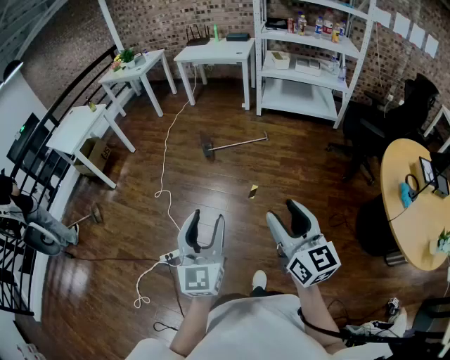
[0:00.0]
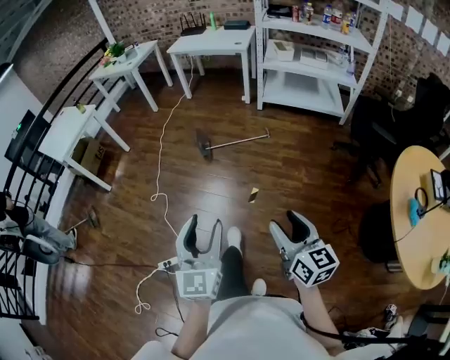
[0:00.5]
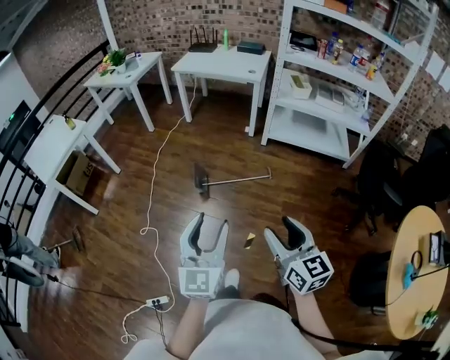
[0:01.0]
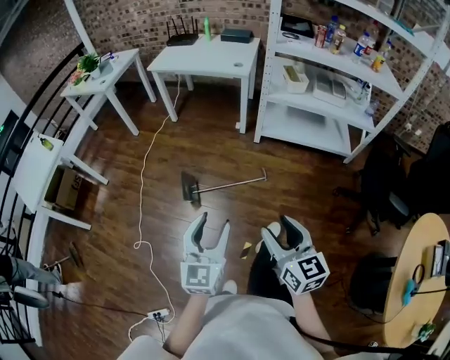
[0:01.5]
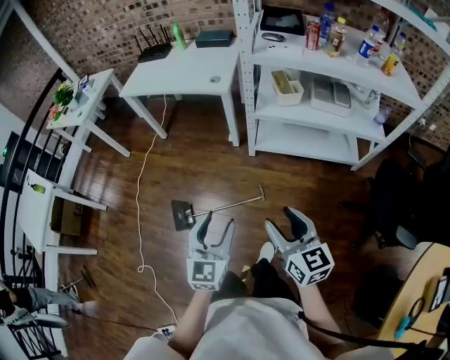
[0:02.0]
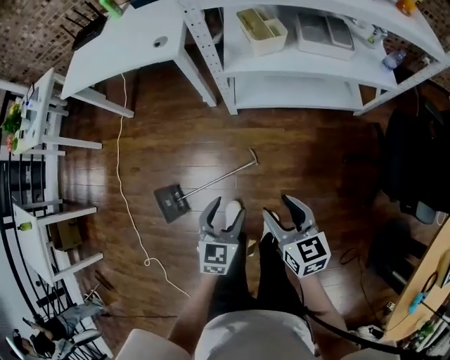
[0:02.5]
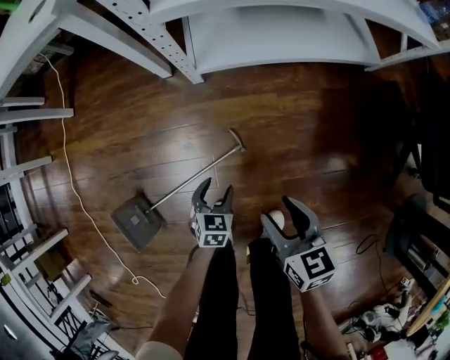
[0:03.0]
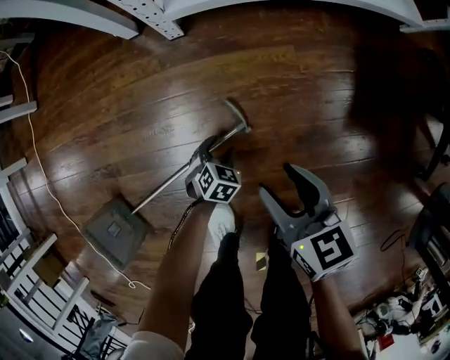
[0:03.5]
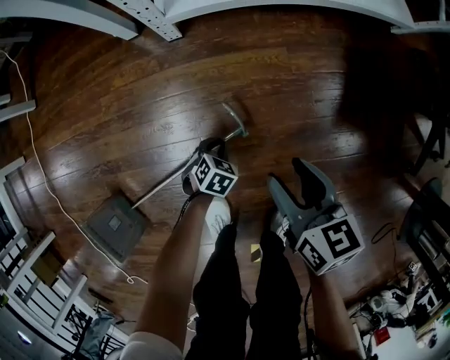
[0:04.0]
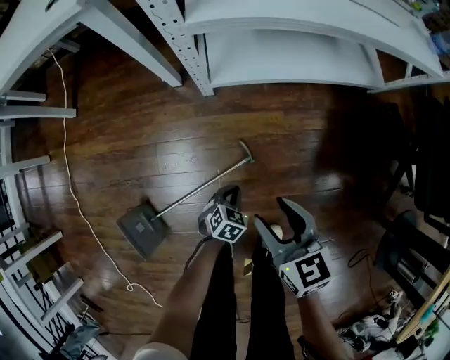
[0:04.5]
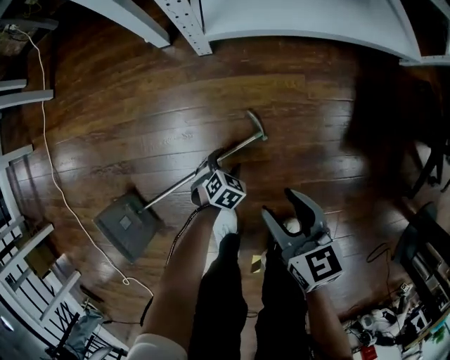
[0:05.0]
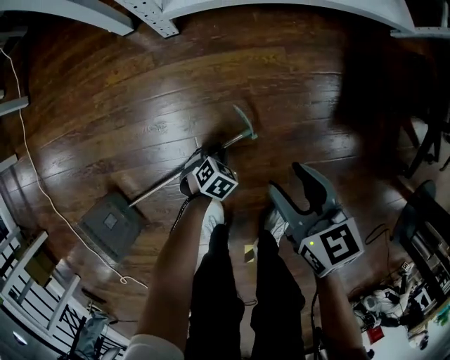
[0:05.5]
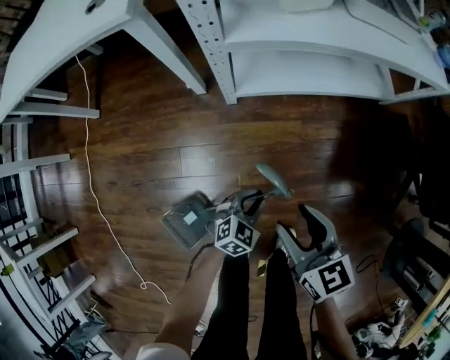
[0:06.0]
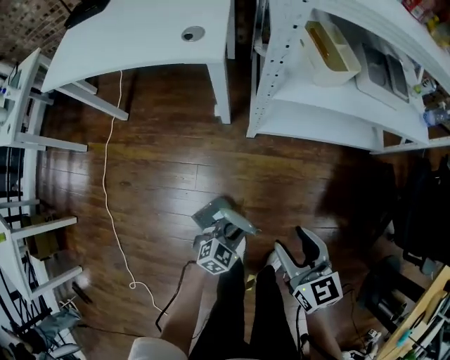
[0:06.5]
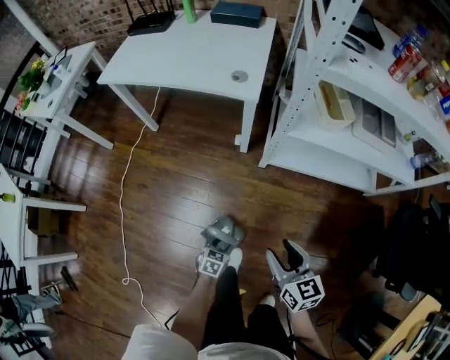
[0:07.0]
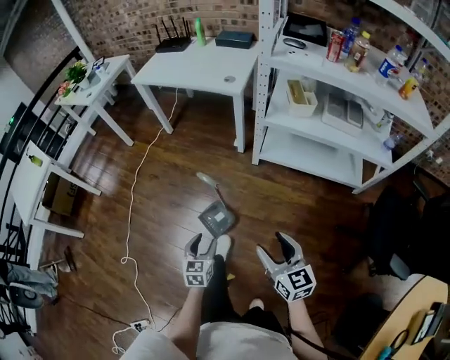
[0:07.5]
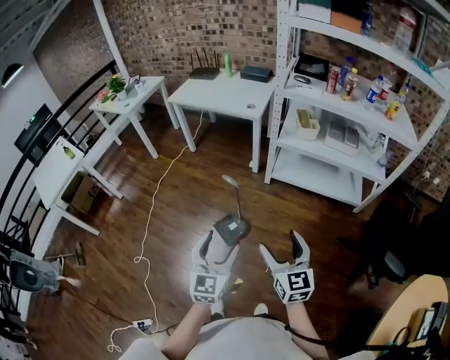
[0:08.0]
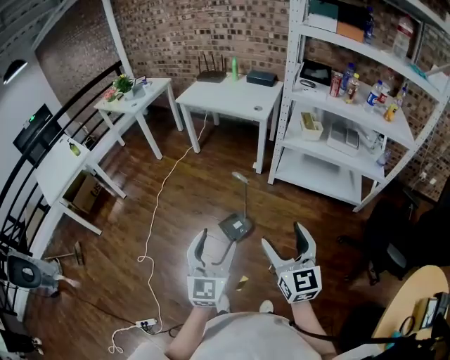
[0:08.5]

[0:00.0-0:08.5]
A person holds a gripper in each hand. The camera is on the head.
0.0 to 2.0 s: Both grippers are carried forward, approximately 90 cm.
2.0 to 4.0 s: Both grippers move downward, some 80 cm. The right gripper turns by roughly 40 degrees. The left gripper tilts its fingers some 60 degrees downward, and closes up.
4.0 to 6.5 s: The right gripper goes up and down, approximately 40 cm each way, reversing 2 times, and changes its angle by approximately 20 degrees; the left gripper moves up and down over roughly 50 cm, changing direction 2 times, turns by about 30 degrees, and opens, then closes once more.
6.5 to 8.5 s: The two grippers travel together, about 50 cm. The right gripper rotates roughly 30 degrees, and opens up. Meanwhile the left gripper is displaced upward by about 60 cm, tips its fingers upward by approximately 40 degrees, and opens up.

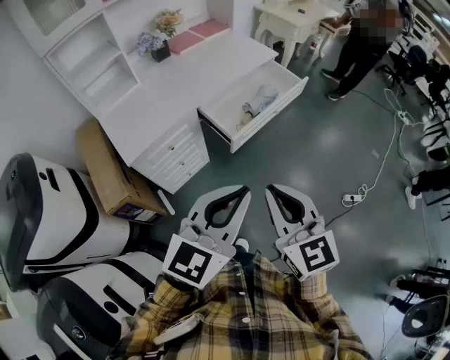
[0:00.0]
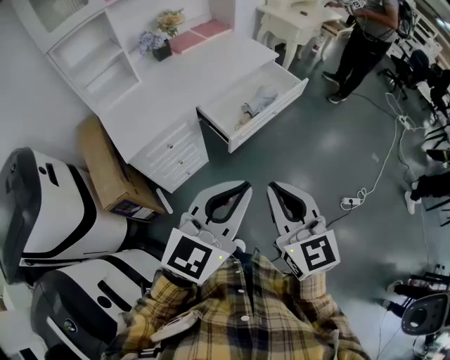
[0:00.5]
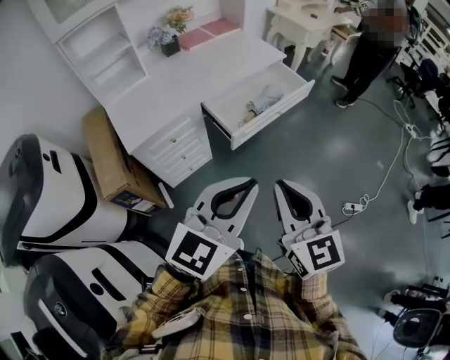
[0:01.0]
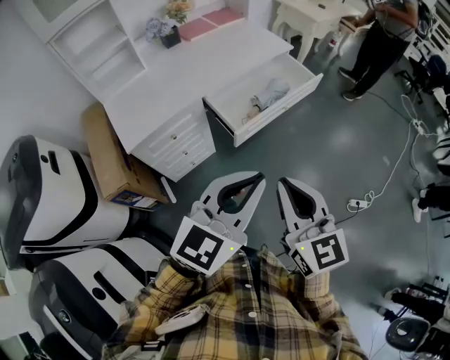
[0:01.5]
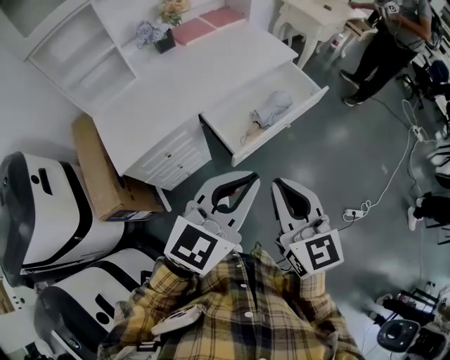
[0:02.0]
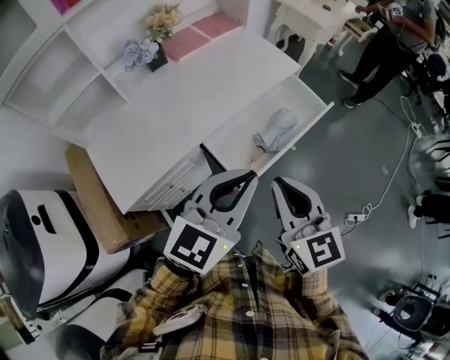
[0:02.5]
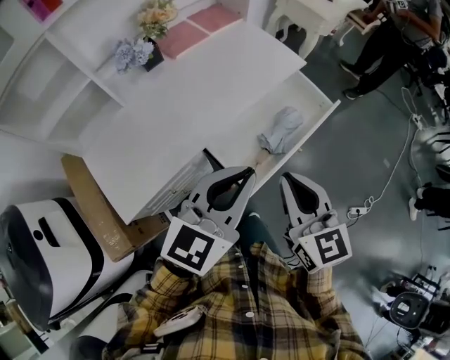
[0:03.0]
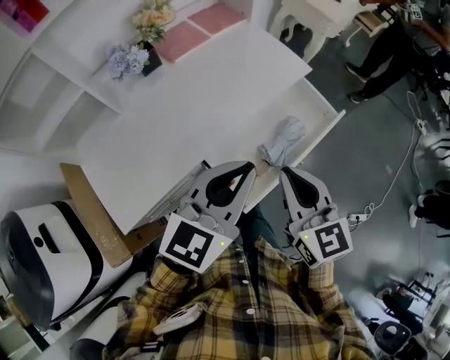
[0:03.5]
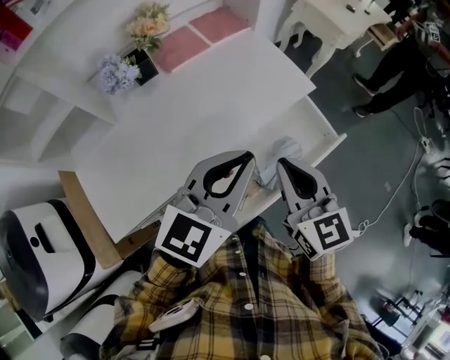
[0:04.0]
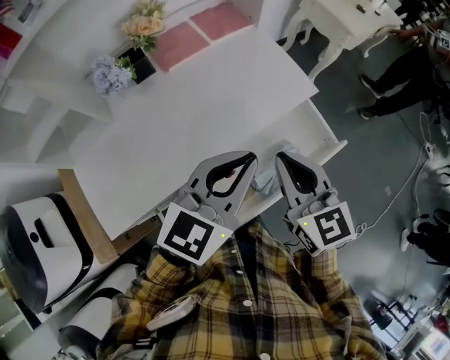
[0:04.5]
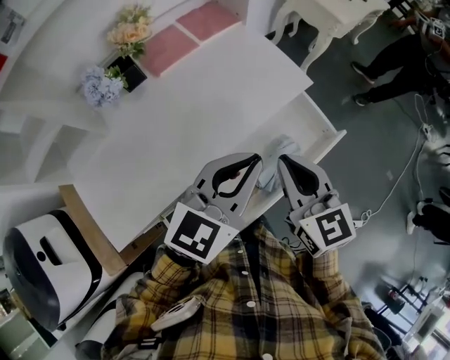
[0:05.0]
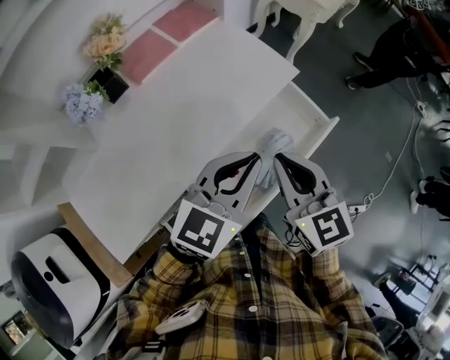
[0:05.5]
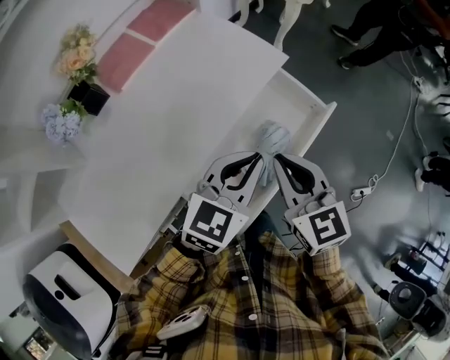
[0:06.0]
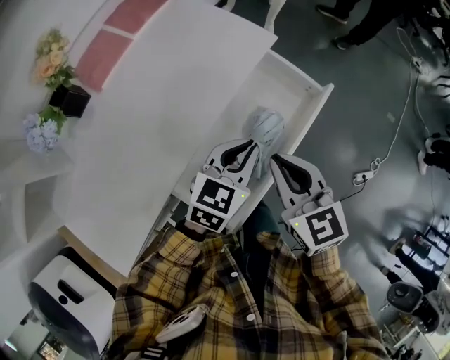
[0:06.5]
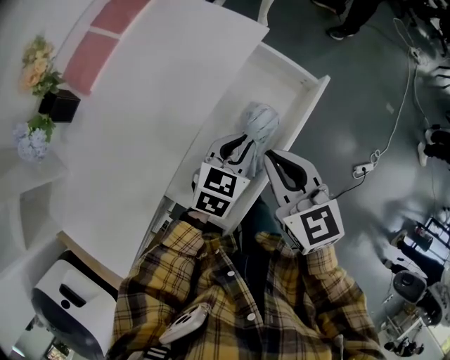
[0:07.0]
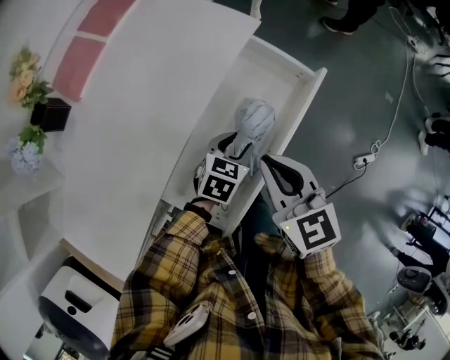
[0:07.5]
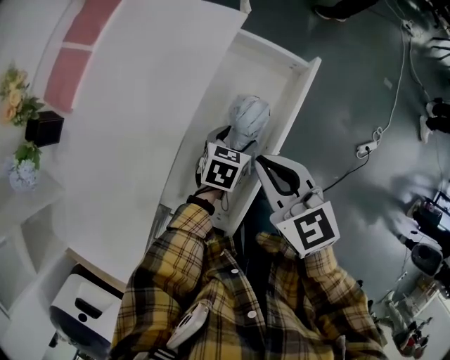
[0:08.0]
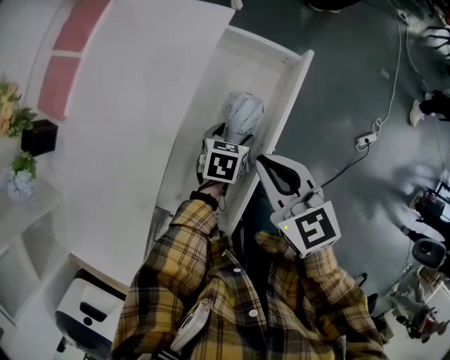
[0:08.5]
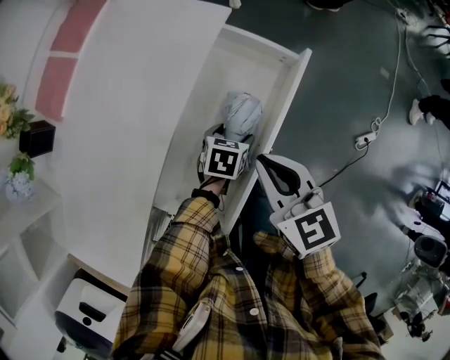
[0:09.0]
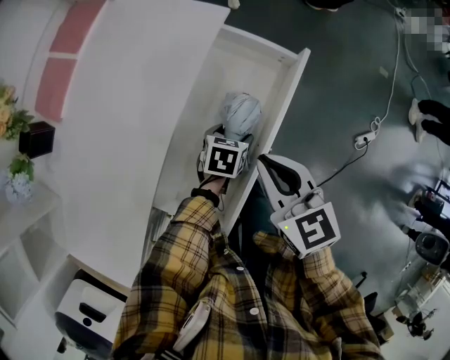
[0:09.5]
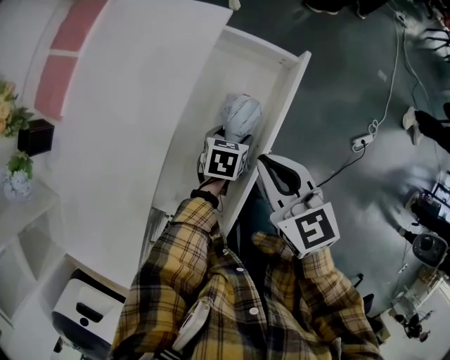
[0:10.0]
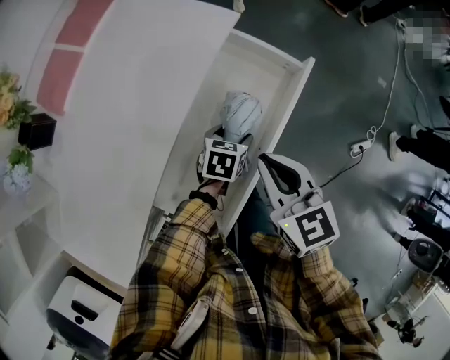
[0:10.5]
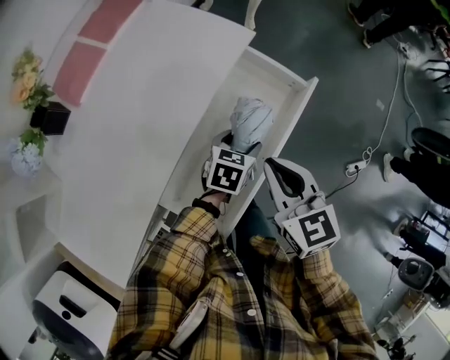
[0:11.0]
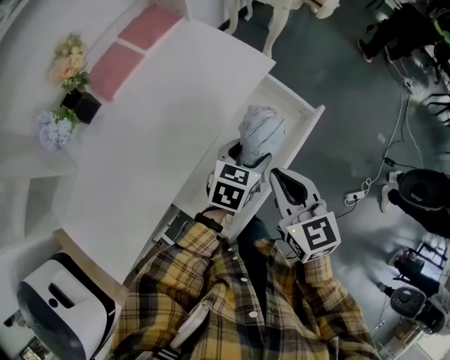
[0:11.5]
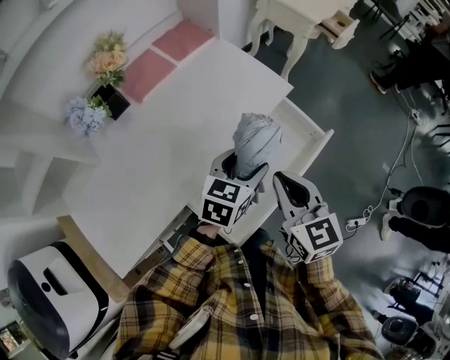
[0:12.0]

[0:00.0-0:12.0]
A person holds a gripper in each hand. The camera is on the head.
0.0 to 2.0 s: The grippers both shift forward by roughly 15 cm.
2.0 to 4.0 s: The two grippers go approximately 35 cm forward.
4.0 to 6.0 s: The right gripper heads downward and to the right, covering approximately 10 cm. The left gripper heads downward and to the right, covering about 15 cm, and swivels some 20 degrees.
6.0 to 8.0 s: The left gripper goes about 25 cm downward, rotates some 30 degrees, and opens, while the right gripper travels downward by approximately 10 cm.
8.0 to 10.0 s: The grippers move only a little.
10.0 to 12.0 s: The left gripper travels upward by roughly 25 cm, and swivels about 30 degrees; the right gripper goes roughly 15 cm upward and to the left.

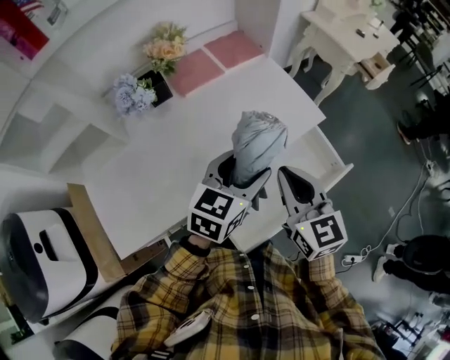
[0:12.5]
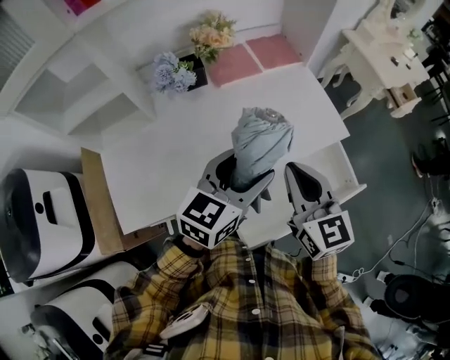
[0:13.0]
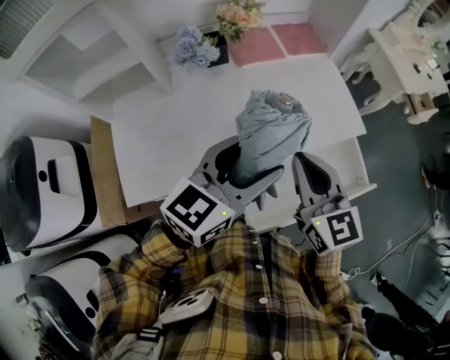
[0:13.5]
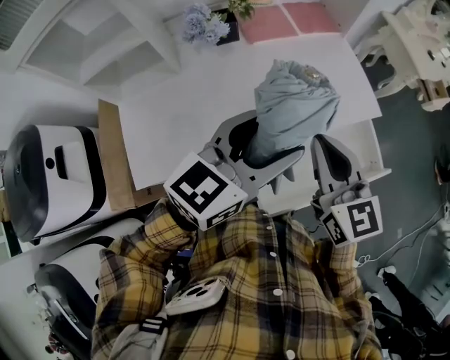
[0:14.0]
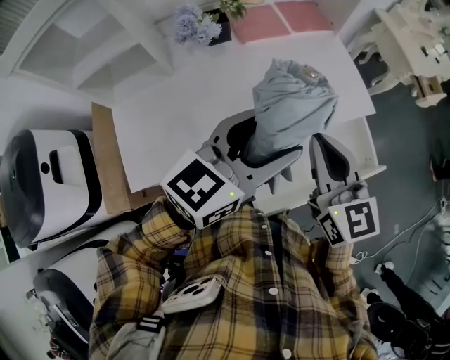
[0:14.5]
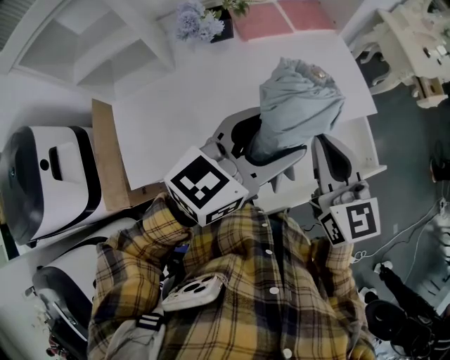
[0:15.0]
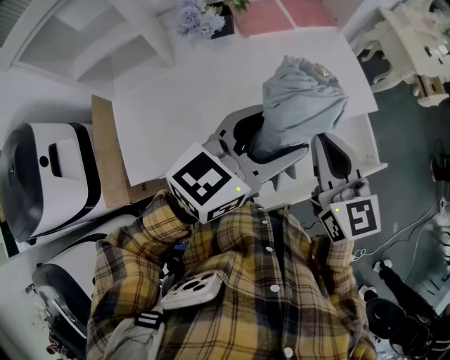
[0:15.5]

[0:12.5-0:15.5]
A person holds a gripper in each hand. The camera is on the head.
12.5 to 14.0 s: The left gripper travels upward and to the left by about 10 cm. The right gripper heads to the left, covering roughly 5 cm.
14.0 to 15.5 s: The two grippers keep their place.

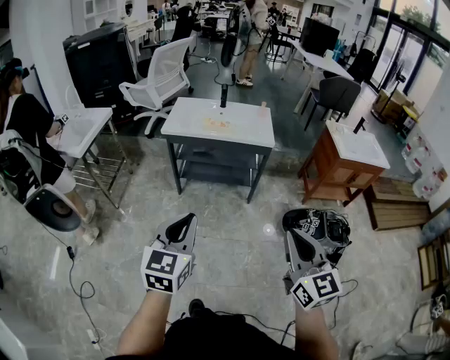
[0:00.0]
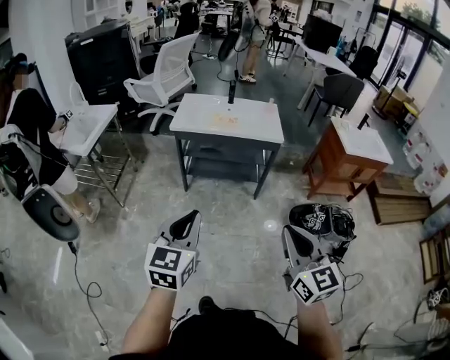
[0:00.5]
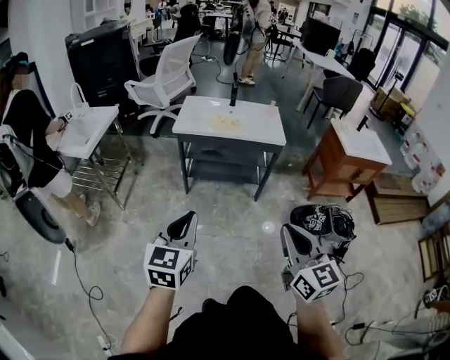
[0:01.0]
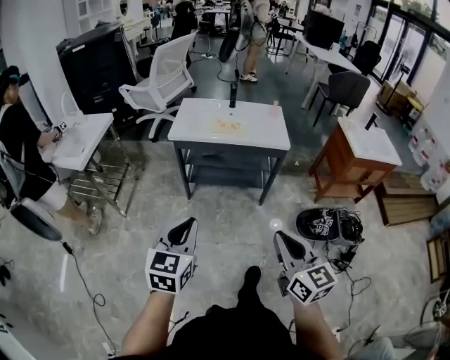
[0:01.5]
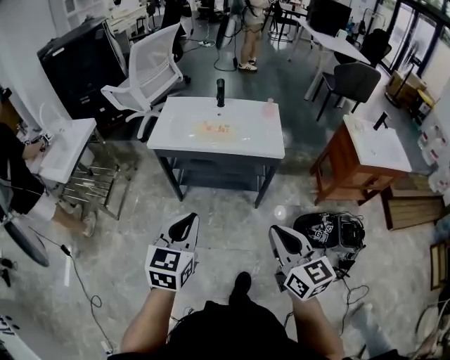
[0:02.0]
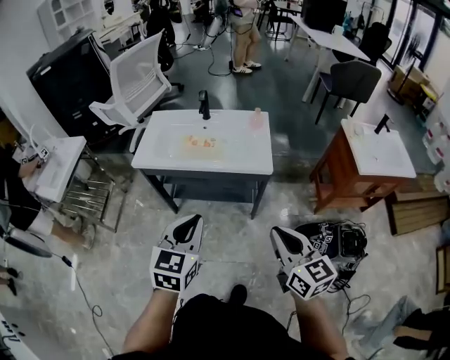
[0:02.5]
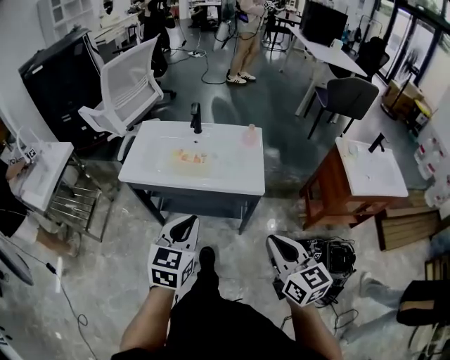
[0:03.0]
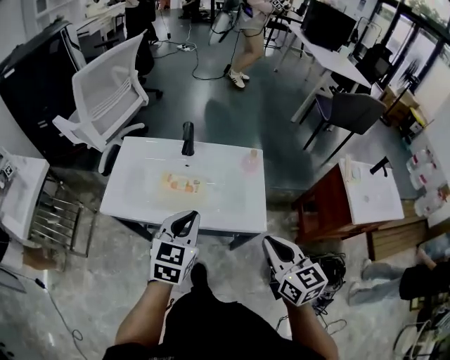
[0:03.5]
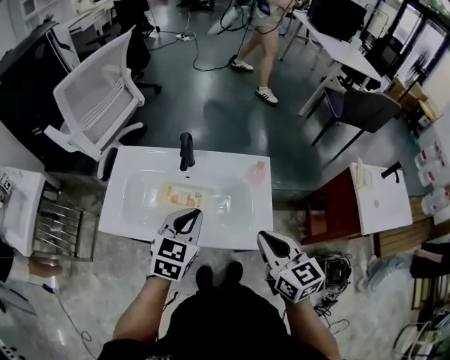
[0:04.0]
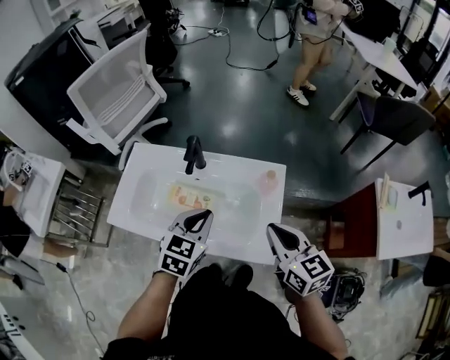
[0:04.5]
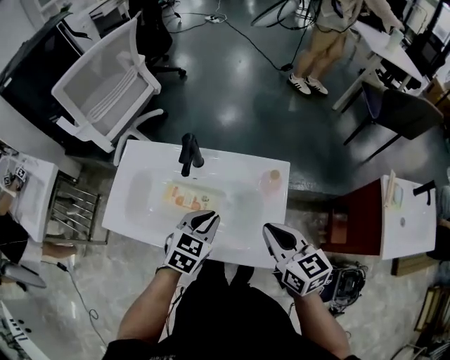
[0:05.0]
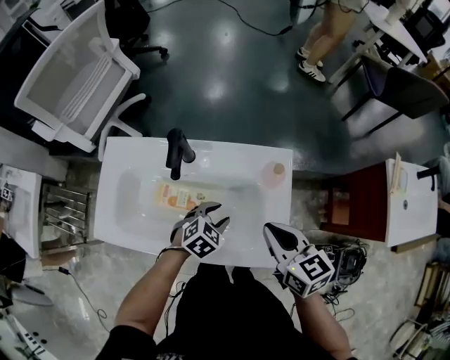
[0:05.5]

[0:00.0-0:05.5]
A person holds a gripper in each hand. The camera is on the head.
0.0 to 2.0 s: The two grippers go some 25 cm forward.
2.0 to 3.5 s: Both grippers move forward, roughly 40 cm.
3.5 to 5.5 s: The right gripper is displaced forward and downward by some 30 cm, while the left gripper goes some 35 cm downward, forward and to the right, points its fingers approximately 30 degrees further downward, and opens.
